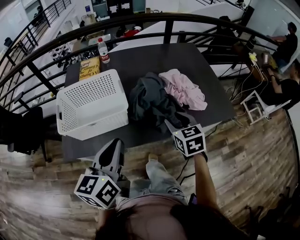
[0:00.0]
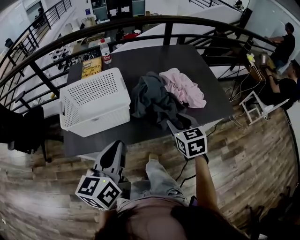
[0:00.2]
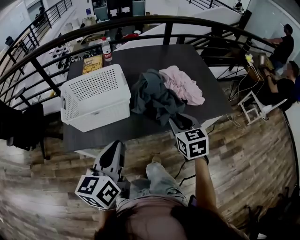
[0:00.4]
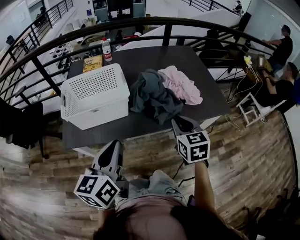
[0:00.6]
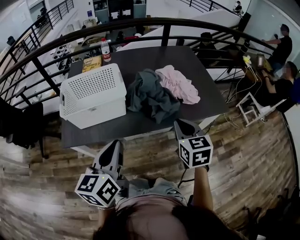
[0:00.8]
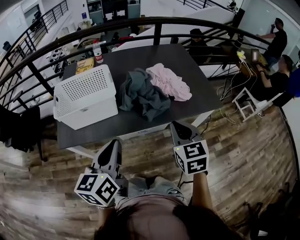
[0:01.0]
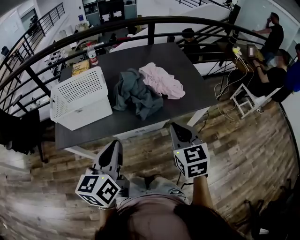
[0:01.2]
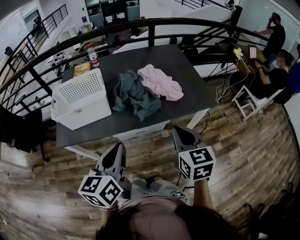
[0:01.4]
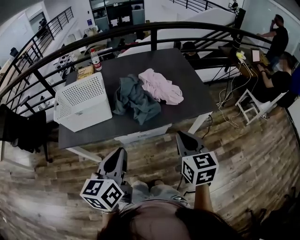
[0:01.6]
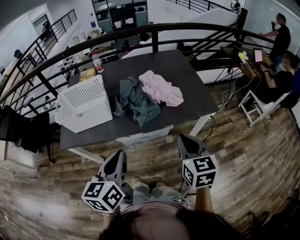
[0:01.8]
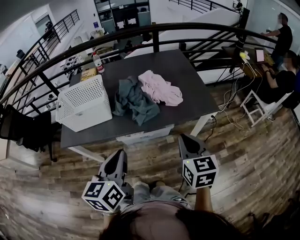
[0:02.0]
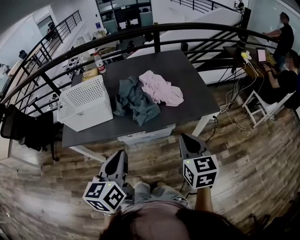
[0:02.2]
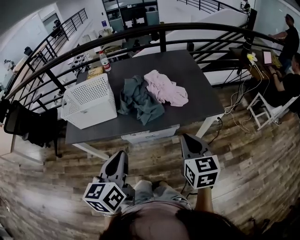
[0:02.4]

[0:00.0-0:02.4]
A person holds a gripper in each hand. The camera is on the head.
0.0 to 1.2 s: The right gripper is displaced backward, upward and to the right by about 20 cm, and closes its fingers, while the left gripper goes roughly 15 cm backward and to the right.
1.2 to 2.4 s: Both grippers travel together to the right, roughly 10 cm.

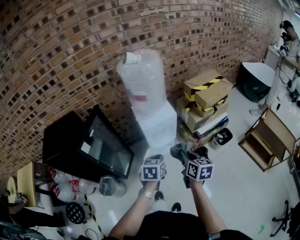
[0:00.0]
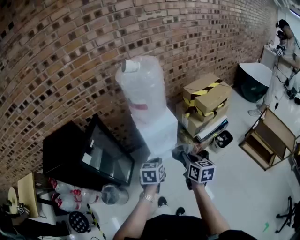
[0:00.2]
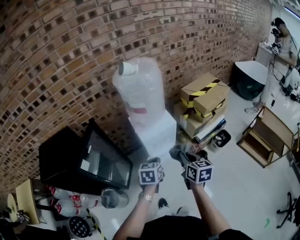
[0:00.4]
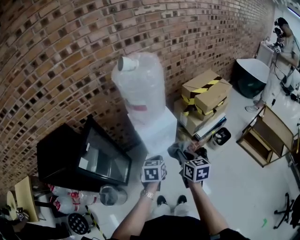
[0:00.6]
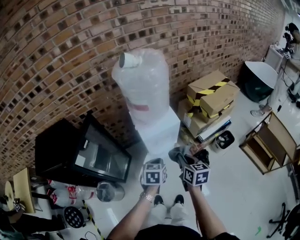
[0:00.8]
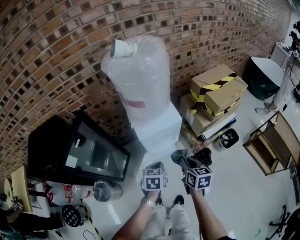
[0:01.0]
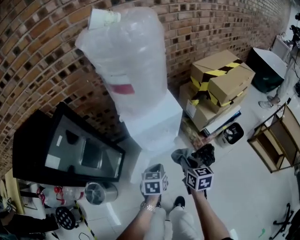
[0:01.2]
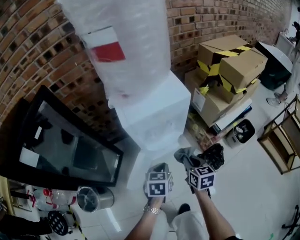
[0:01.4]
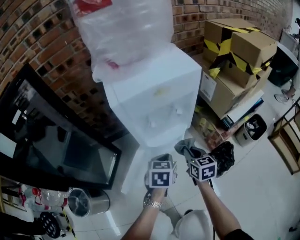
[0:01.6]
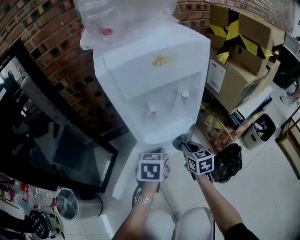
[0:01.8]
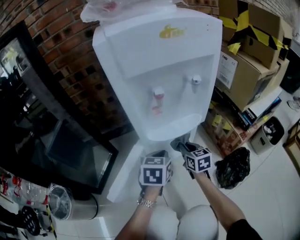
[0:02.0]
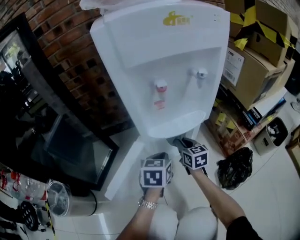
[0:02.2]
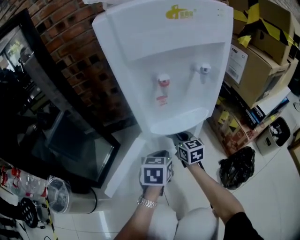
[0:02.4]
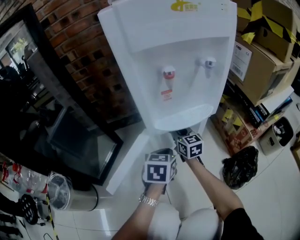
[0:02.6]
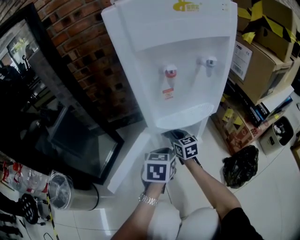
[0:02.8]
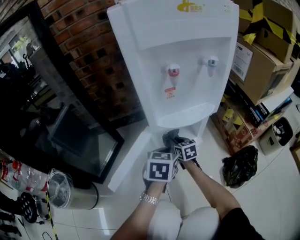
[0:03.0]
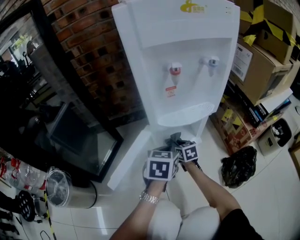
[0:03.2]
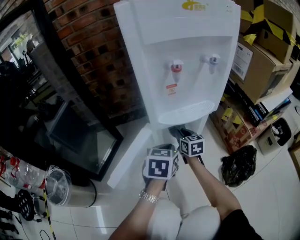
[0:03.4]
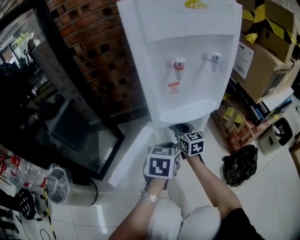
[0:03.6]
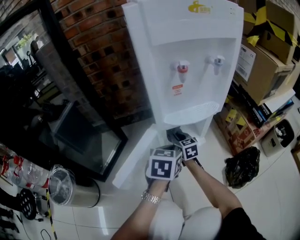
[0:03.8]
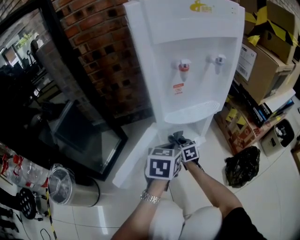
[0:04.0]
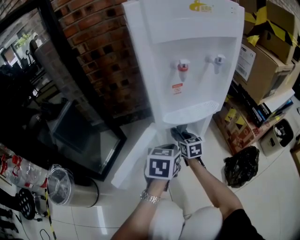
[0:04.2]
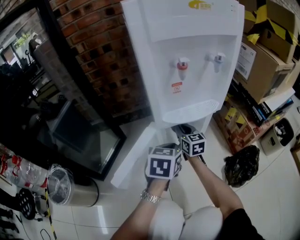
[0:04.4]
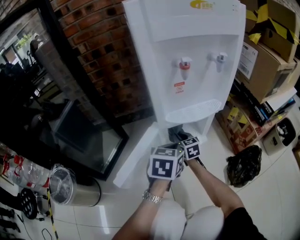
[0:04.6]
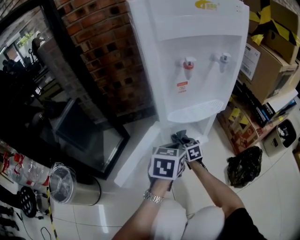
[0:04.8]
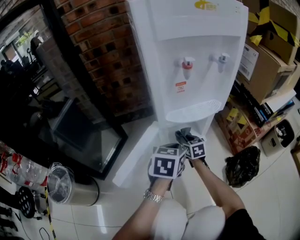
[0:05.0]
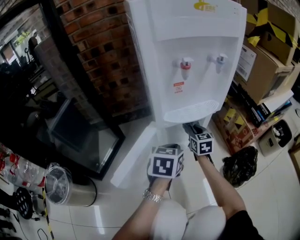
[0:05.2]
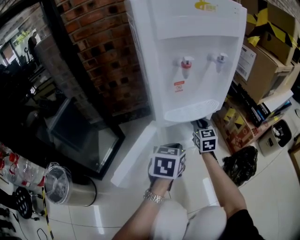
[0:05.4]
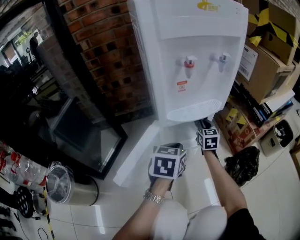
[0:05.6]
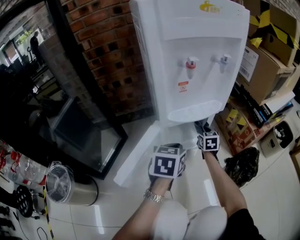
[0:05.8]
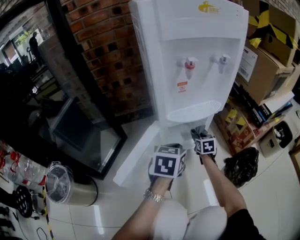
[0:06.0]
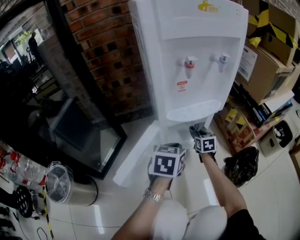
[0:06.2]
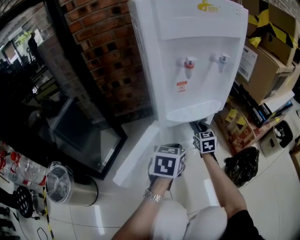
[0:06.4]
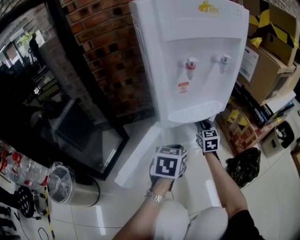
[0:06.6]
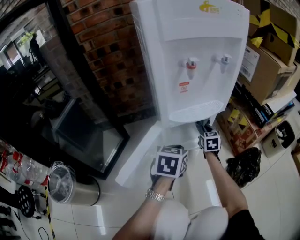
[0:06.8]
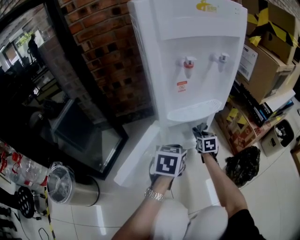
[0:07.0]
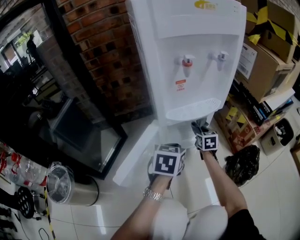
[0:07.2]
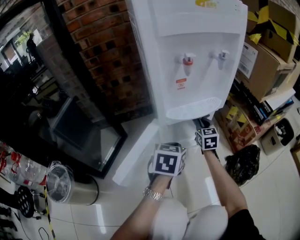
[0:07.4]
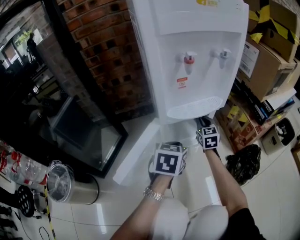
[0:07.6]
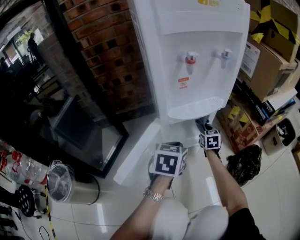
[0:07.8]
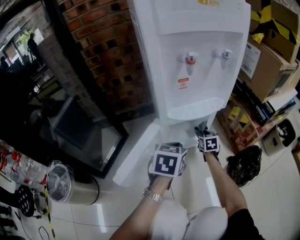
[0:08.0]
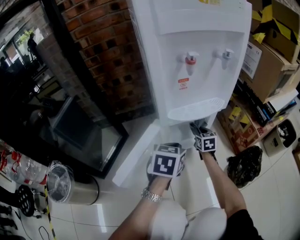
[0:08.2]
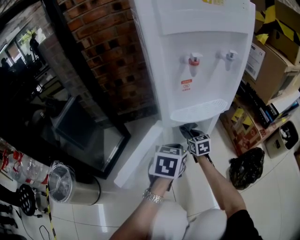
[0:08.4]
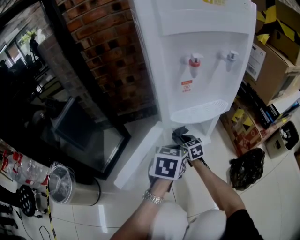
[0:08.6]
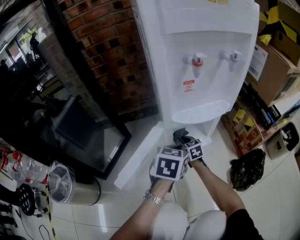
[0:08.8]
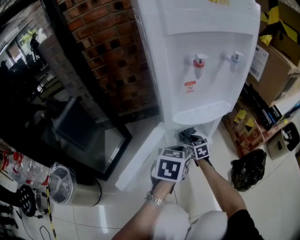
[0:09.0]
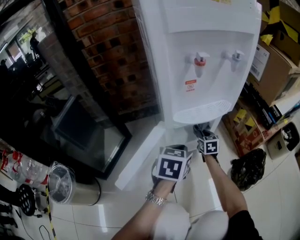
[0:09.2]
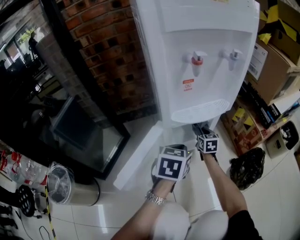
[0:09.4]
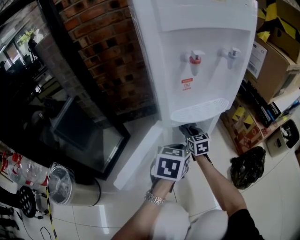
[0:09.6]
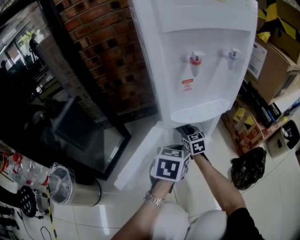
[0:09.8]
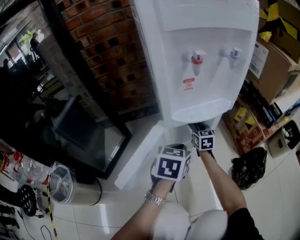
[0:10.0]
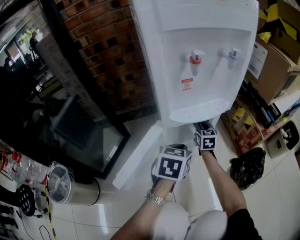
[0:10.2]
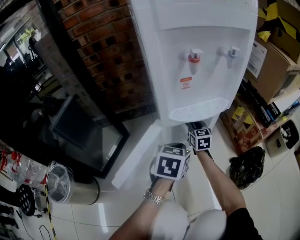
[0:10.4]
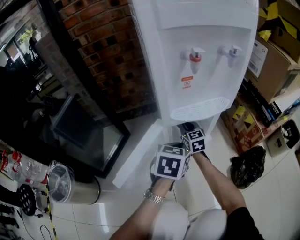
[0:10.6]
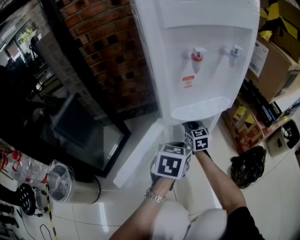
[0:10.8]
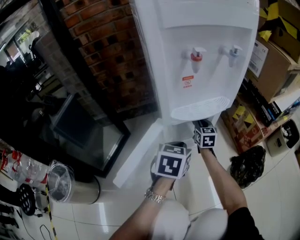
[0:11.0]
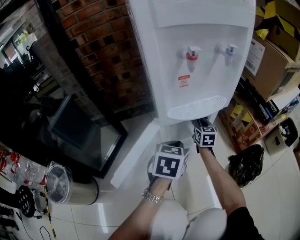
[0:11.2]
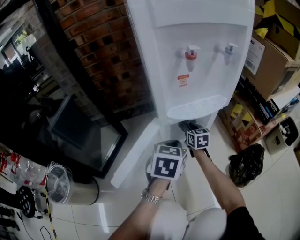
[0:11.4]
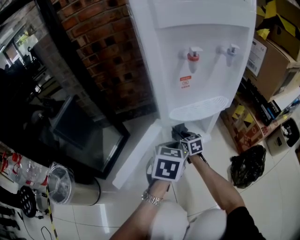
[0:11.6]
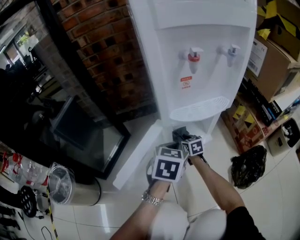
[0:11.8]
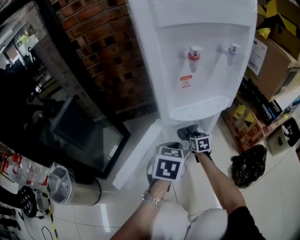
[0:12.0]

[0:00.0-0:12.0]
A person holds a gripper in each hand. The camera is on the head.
0.0 to 1.6 s: The left gripper is displaced downward by about 50 cm, while the right gripper shifts roughly 60 cm downward and forward.
1.6 to 3.0 s: The right gripper goes about 35 cm downward, to the left and forward. Meanwhile the left gripper is displaced downward by approximately 20 cm.
3.0 to 4.4 s: The right gripper swings up and down, some 15 cm each way, with 2 reversals.
4.4 to 6.0 s: The right gripper is displaced downward and to the right by approximately 15 cm, and changes its angle by some 30 degrees.
6.0 to 7.6 s: The right gripper swings up and down, about 10 cm each way, with 2 reversals, and rotates some 20 degrees.
7.6 to 9.0 s: The right gripper moves downward and to the left, about 15 cm, and turns by some 20 degrees.
9.0 to 10.4 s: The right gripper travels upward by approximately 10 cm.
10.4 to 12.0 s: The right gripper moves downward, approximately 15 cm, and changes its angle by roughly 20 degrees.

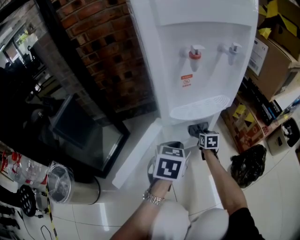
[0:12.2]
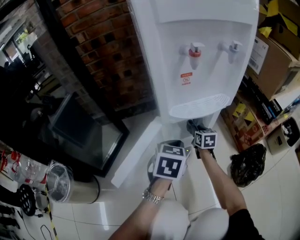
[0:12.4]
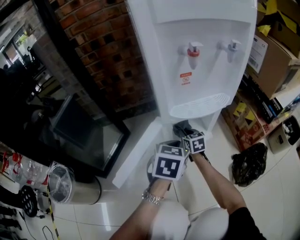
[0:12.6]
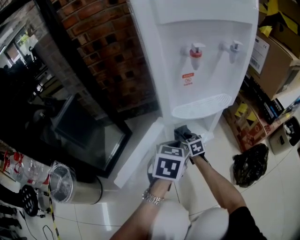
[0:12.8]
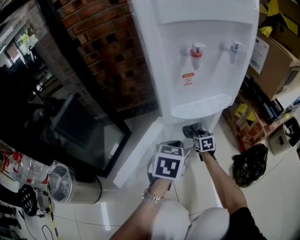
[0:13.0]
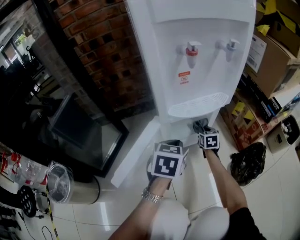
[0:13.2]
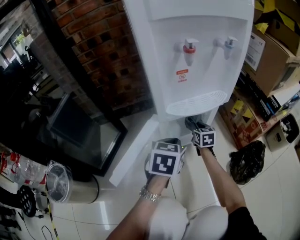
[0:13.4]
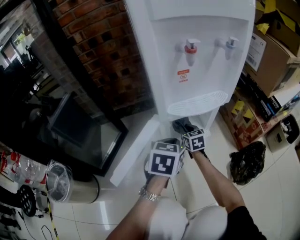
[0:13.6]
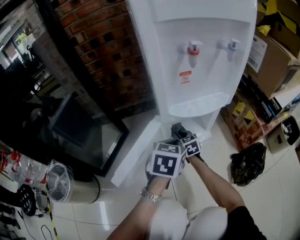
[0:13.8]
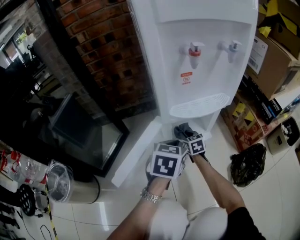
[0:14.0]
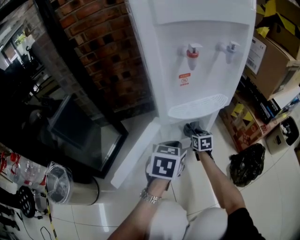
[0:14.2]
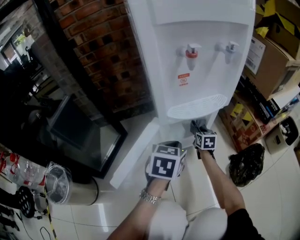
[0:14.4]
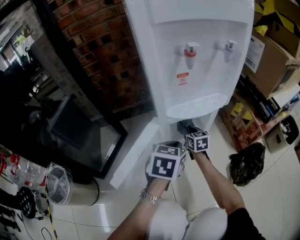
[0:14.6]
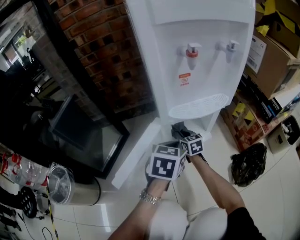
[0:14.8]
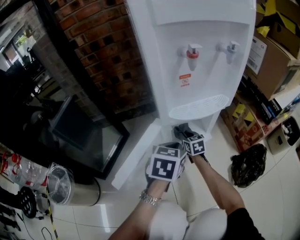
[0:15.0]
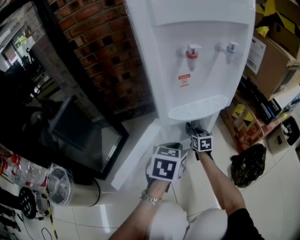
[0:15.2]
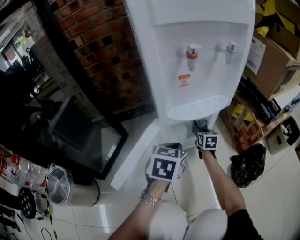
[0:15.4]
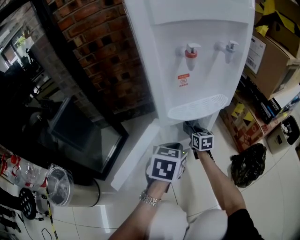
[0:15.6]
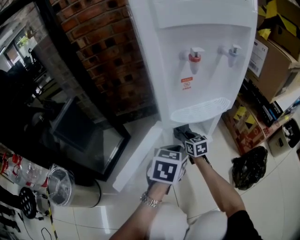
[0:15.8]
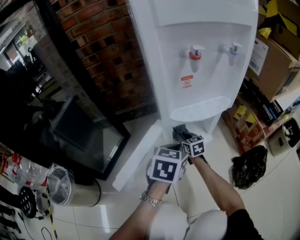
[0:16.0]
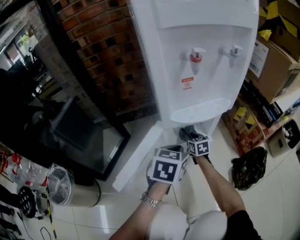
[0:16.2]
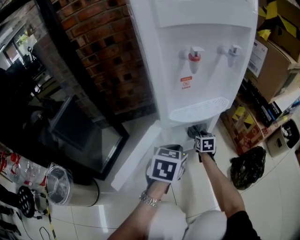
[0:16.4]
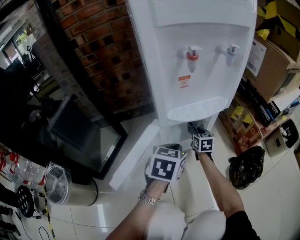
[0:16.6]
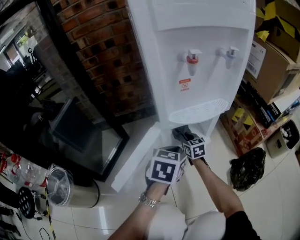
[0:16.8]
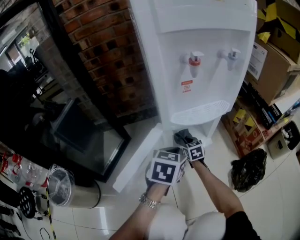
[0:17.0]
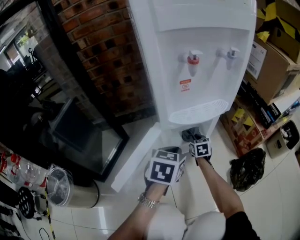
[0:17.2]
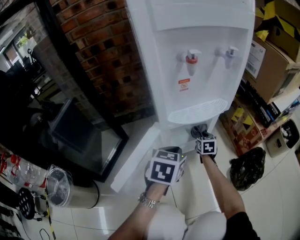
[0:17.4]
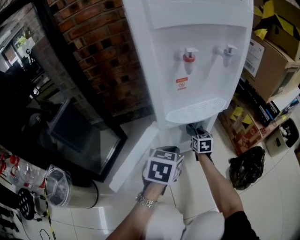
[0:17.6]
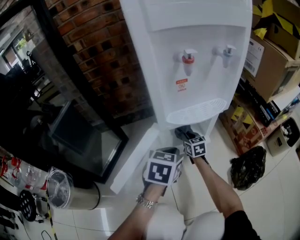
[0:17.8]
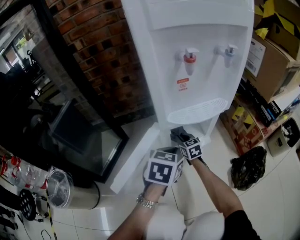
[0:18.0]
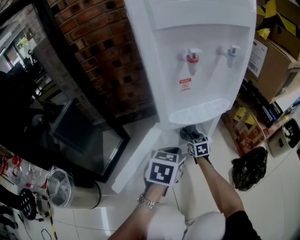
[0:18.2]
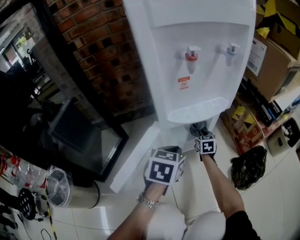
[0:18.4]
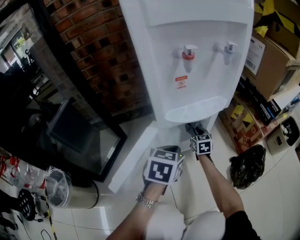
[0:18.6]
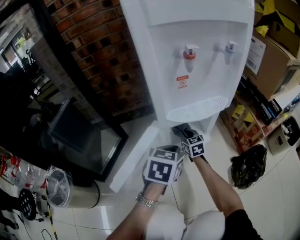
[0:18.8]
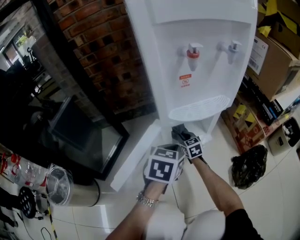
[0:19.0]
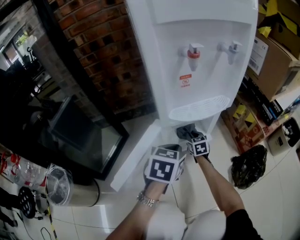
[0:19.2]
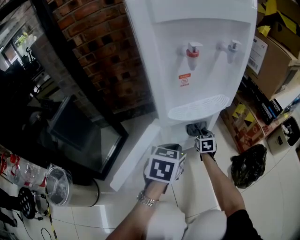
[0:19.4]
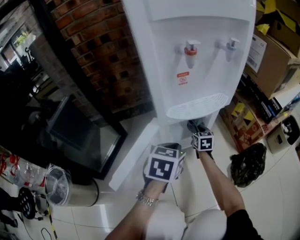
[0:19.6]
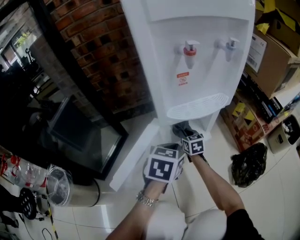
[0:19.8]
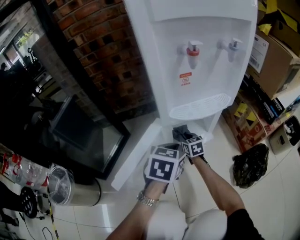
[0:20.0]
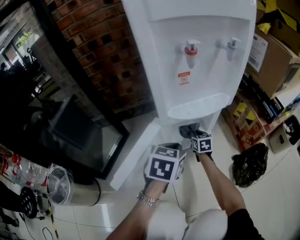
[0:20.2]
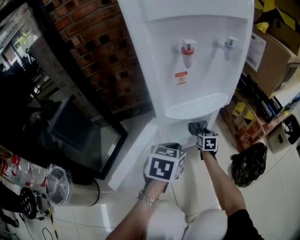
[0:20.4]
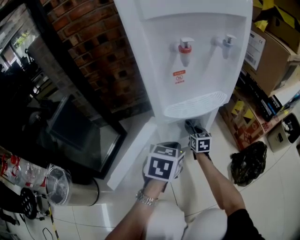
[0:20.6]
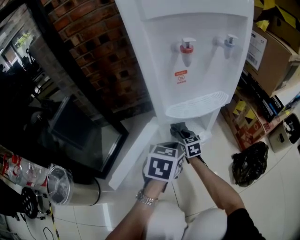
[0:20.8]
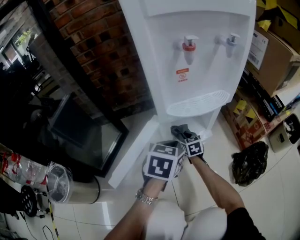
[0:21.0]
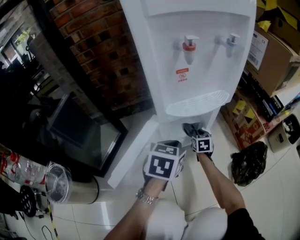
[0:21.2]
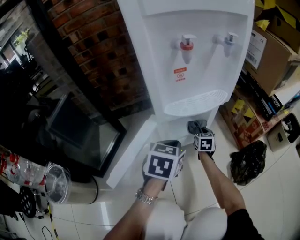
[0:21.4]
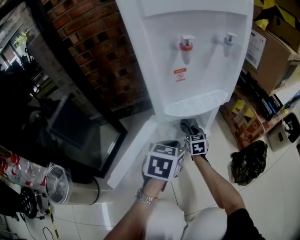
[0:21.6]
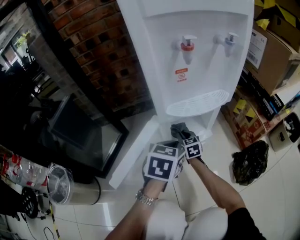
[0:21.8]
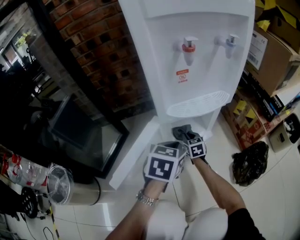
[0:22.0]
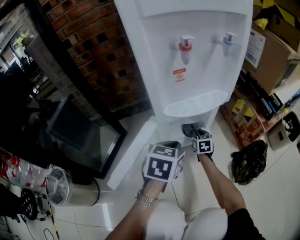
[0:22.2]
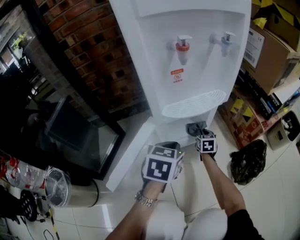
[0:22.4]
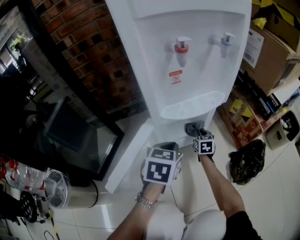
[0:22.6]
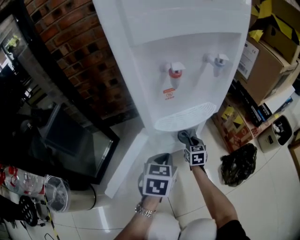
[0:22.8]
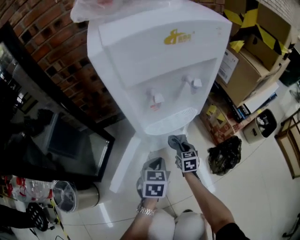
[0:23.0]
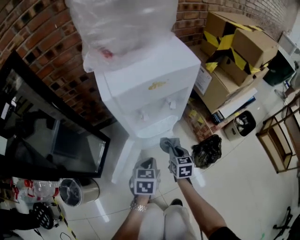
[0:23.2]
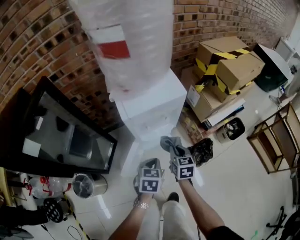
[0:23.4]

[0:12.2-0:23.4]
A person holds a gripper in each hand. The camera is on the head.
12.2 to 13.8 s: The right gripper moves left and right over roughly 15 cm, changing direction 2 times, and rotates approximately 30 degrees.
13.8 to 15.4 s: The right gripper moves left and right over roughly 15 cm, changing direction 2 times, and changes its angle by roughly 30 degrees.
15.4 to 17.0 s: The right gripper goes left and right, about 15 cm each way, reversing 2 times.
17.0 to 18.6 s: The right gripper moves left and right over roughly 15 cm, changing direction 2 times.
18.6 to 20.2 s: The right gripper goes left and right, approximately 15 cm each way, reversing 3 times.
20.2 to 21.8 s: The right gripper moves left and right over approximately 15 cm, changing direction 3 times.
21.8 to 23.4 s: The left gripper goes approximately 35 cm upward. Meanwhile the right gripper moves upward, approximately 50 cm.
